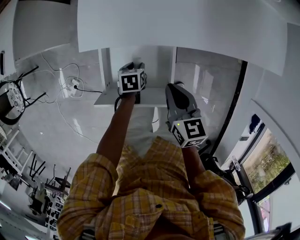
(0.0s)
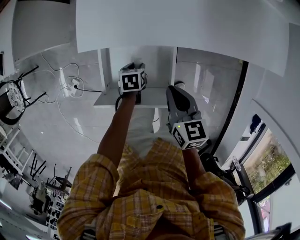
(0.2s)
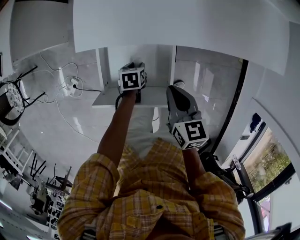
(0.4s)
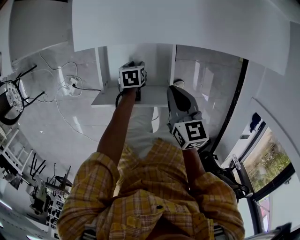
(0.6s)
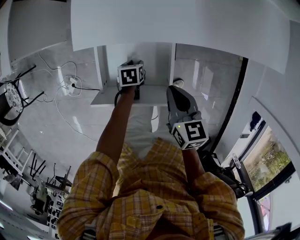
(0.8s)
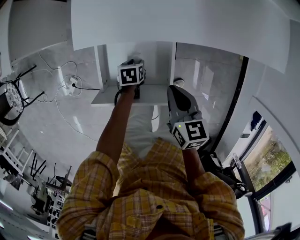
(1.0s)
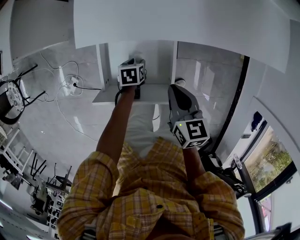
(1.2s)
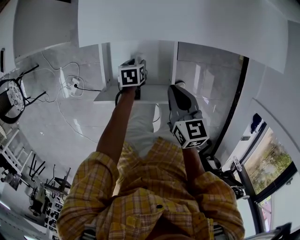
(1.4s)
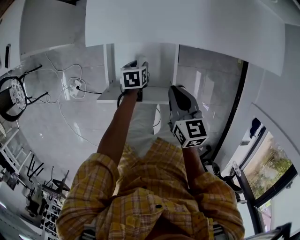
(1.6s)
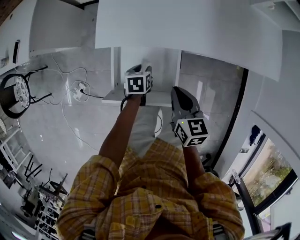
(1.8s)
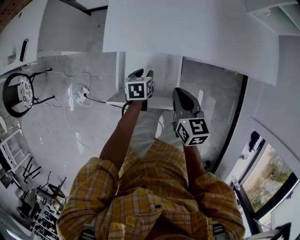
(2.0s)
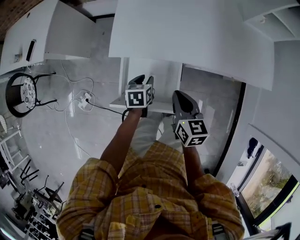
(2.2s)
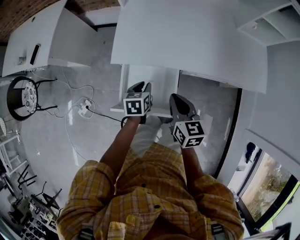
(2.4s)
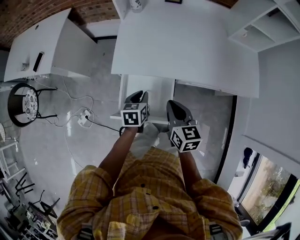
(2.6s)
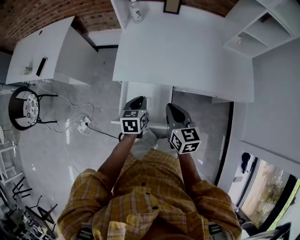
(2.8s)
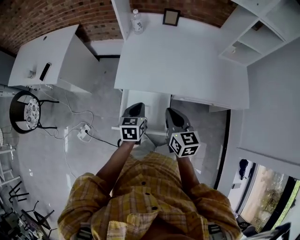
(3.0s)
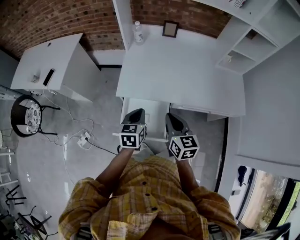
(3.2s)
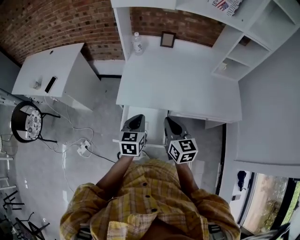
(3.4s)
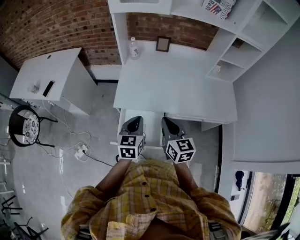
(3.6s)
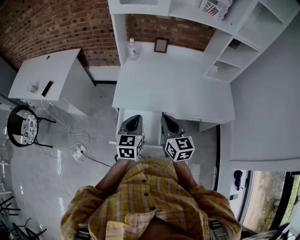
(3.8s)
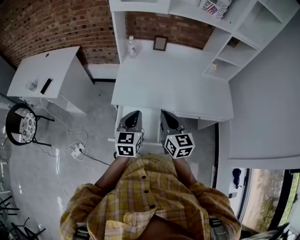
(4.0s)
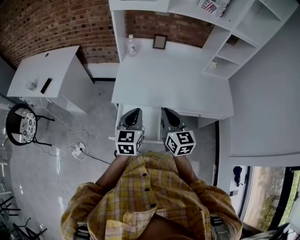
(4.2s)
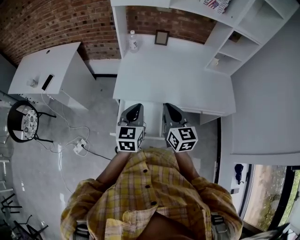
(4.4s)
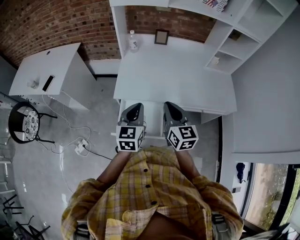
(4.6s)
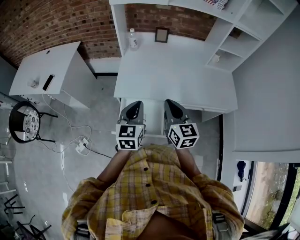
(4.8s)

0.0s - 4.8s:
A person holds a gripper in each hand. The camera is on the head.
0.0s - 1.6s: There are only small adjustments of the grippers.
1.6s - 3.2s: The right gripper heads upward, covering some 20 cm; the left gripper travels upward by some 35 cm, points its fingers roughly 30 degrees further upward, and closes up.
3.2s - 4.8s: Both grippers travel together upward, some 10 cm. The left gripper turns by some 20 degrees.

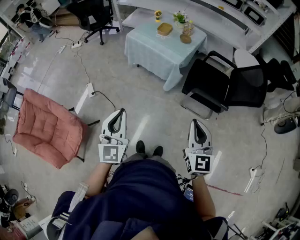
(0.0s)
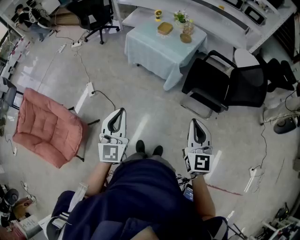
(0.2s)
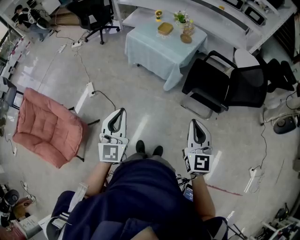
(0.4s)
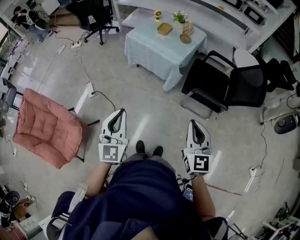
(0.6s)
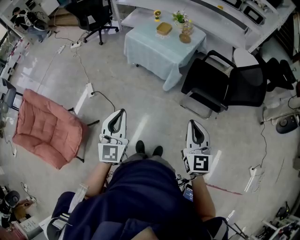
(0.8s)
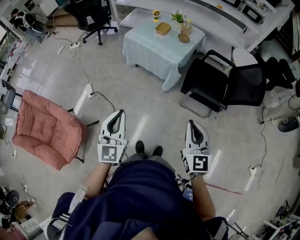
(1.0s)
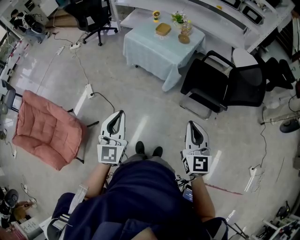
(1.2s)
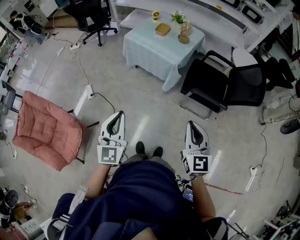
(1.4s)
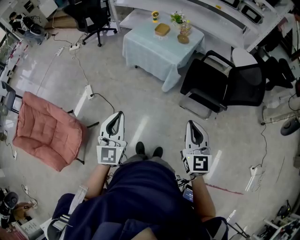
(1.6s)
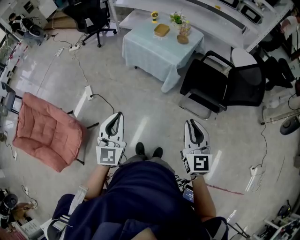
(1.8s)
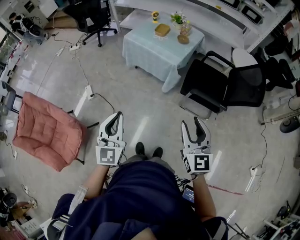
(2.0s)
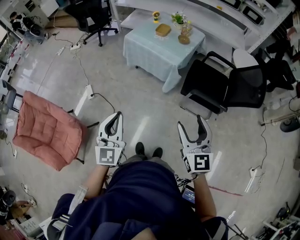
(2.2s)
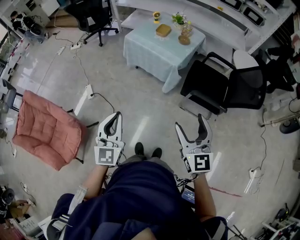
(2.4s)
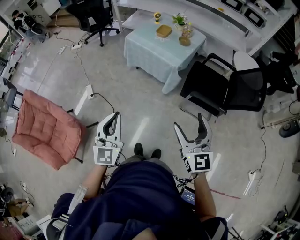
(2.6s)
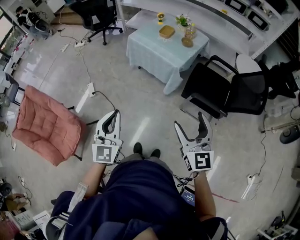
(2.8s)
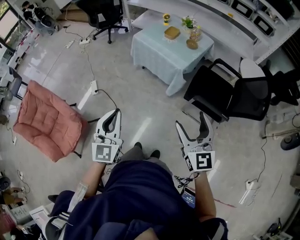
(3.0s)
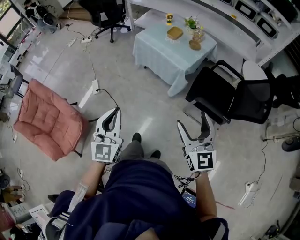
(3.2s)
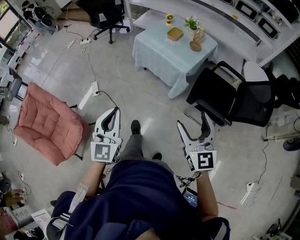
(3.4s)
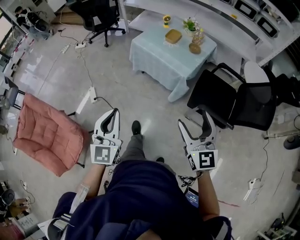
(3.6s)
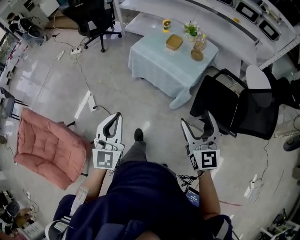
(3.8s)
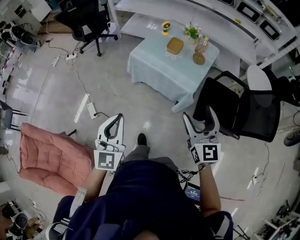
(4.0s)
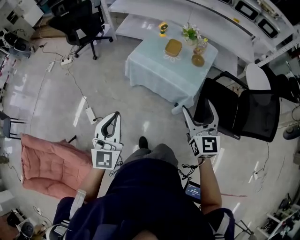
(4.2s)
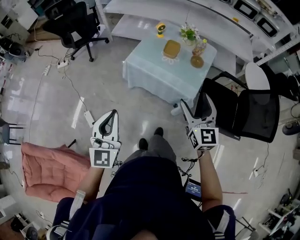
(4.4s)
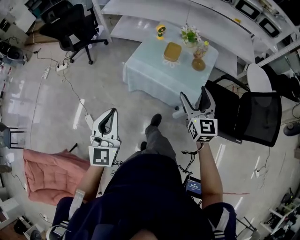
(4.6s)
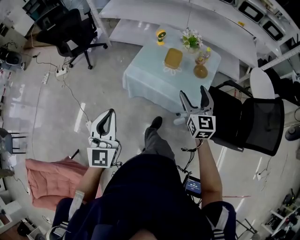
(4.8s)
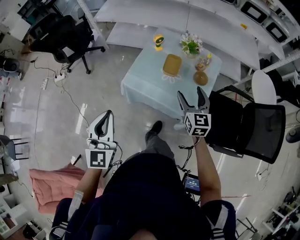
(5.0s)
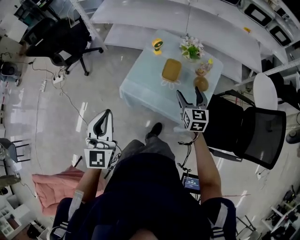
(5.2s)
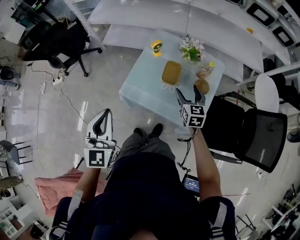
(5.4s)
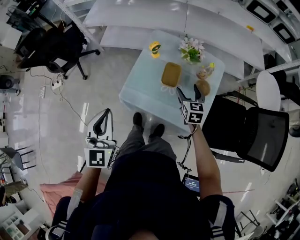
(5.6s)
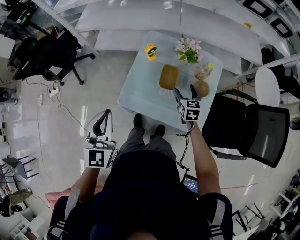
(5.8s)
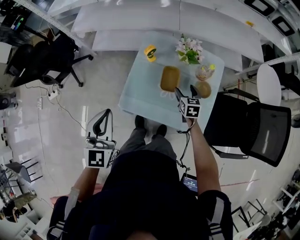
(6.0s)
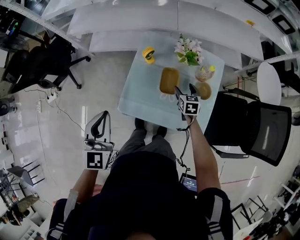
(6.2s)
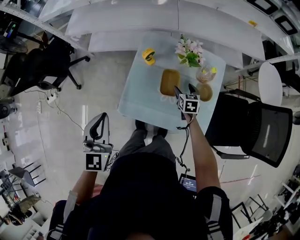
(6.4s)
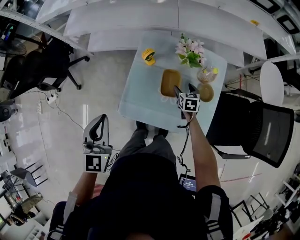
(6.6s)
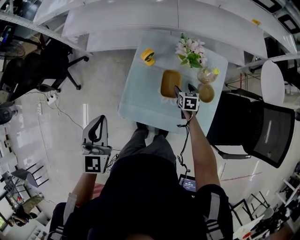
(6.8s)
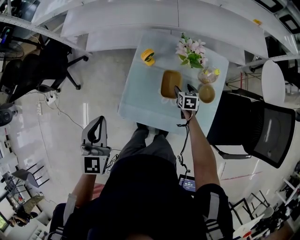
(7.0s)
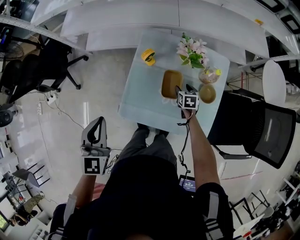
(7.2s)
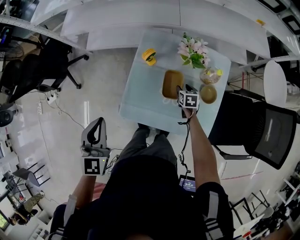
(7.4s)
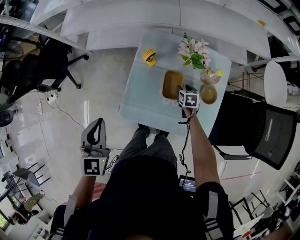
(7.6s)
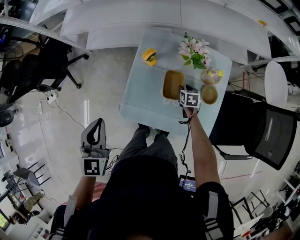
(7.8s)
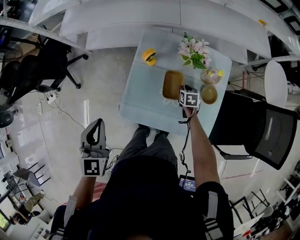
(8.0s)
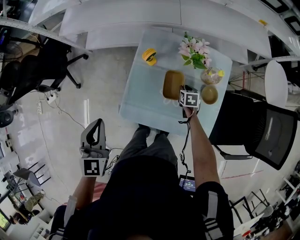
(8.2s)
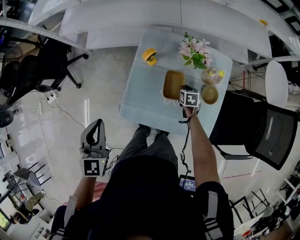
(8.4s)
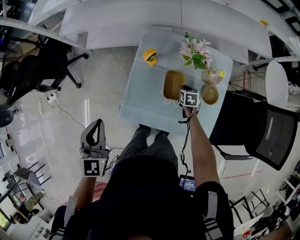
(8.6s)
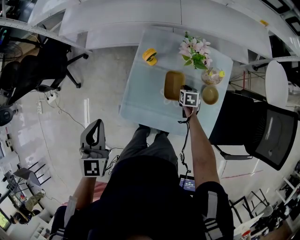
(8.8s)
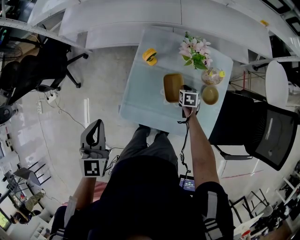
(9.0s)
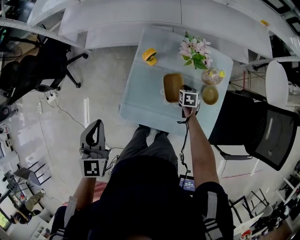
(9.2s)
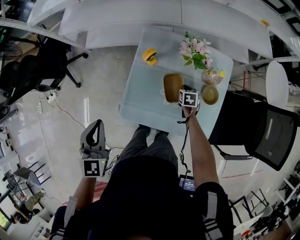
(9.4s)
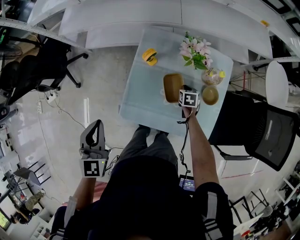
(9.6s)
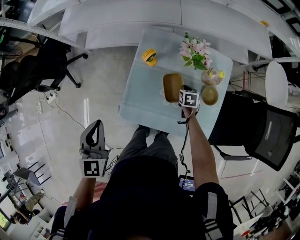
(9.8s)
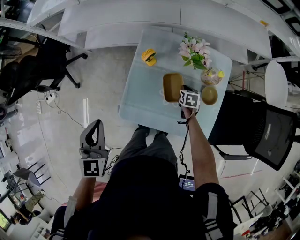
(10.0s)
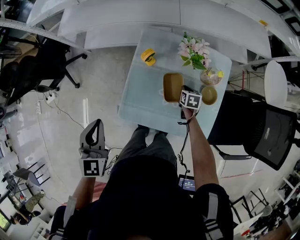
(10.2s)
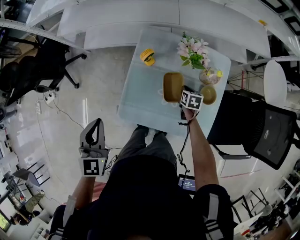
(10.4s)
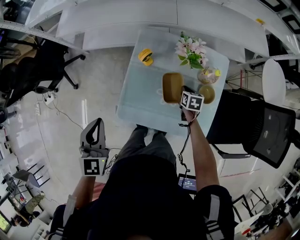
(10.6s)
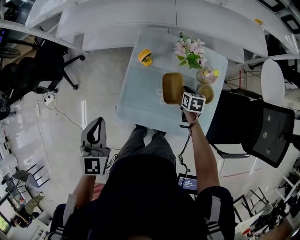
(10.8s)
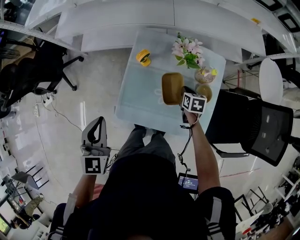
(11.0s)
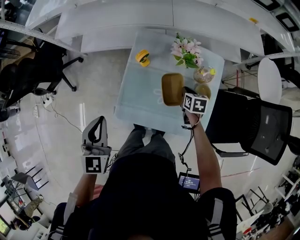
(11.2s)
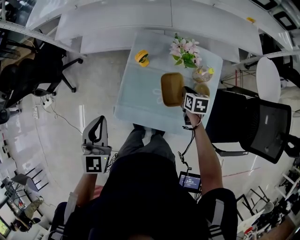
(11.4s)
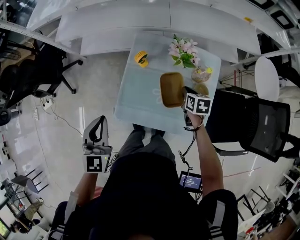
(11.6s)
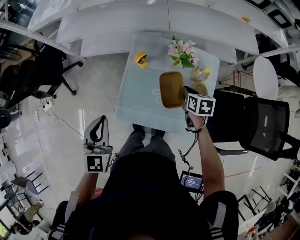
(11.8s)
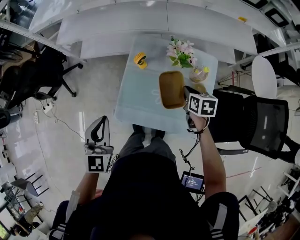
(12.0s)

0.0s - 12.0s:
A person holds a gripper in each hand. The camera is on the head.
0.0s - 1.6s: The grippers make only small movements.
1.6s - 3.0s: The right gripper opens up.
3.0s - 4.4s: Both grippers are carried forward, roughly 40 cm.
4.4s - 6.0s: The pair of grippers is taken forward, roughly 40 cm. The right gripper is displaced downward by roughly 30 cm, and angles its fingers downward, by about 30 degrees.
6.0s - 7.6s: The left gripper heads forward and downward, covering about 10 cm; the right gripper is displaced downward and forward by about 15 cm, and closes up.
7.6s - 9.0s: The right gripper closes up.
9.0s - 10.4s: The grippers make only small movements.
10.4s - 12.0s: The right gripper heads upward, covering roughly 20 cm.

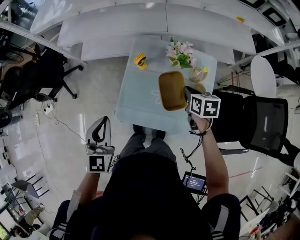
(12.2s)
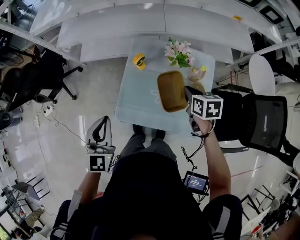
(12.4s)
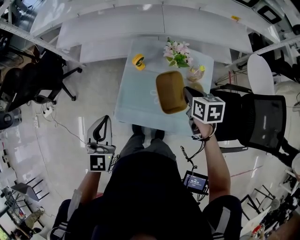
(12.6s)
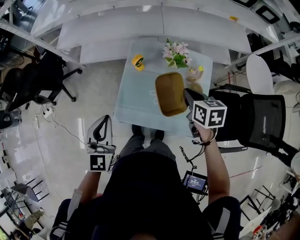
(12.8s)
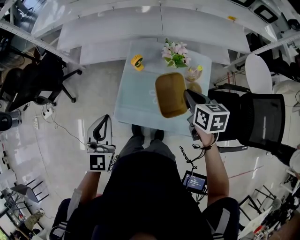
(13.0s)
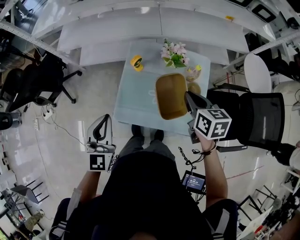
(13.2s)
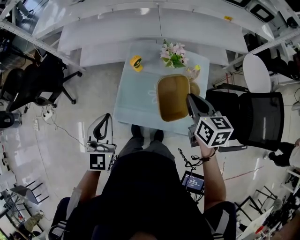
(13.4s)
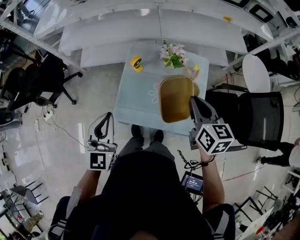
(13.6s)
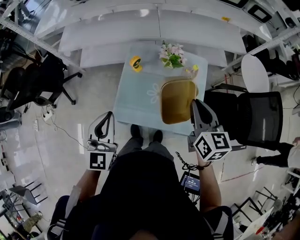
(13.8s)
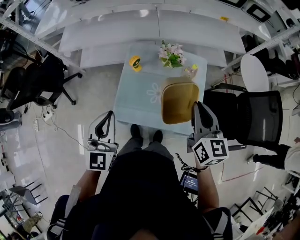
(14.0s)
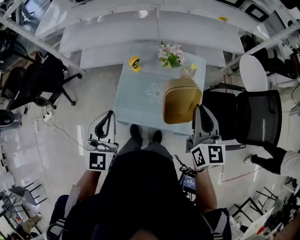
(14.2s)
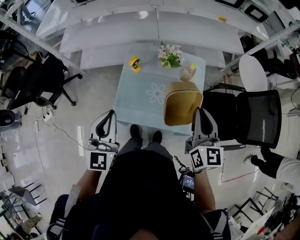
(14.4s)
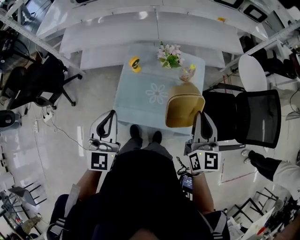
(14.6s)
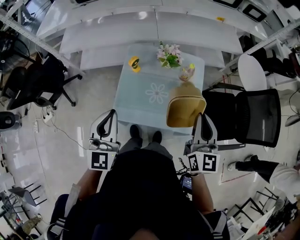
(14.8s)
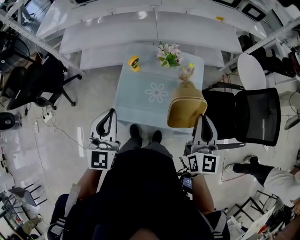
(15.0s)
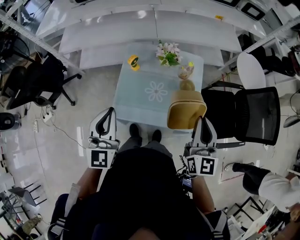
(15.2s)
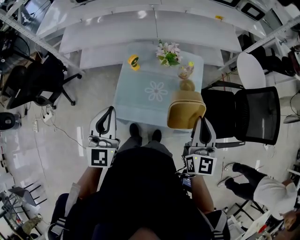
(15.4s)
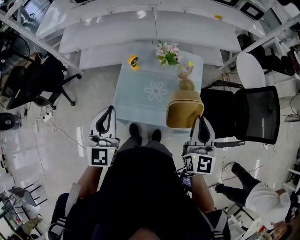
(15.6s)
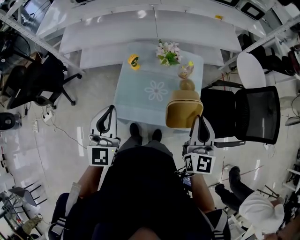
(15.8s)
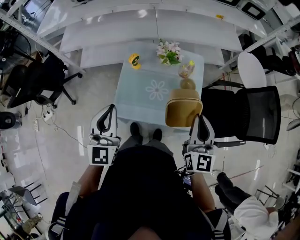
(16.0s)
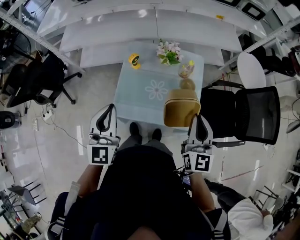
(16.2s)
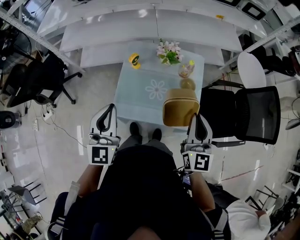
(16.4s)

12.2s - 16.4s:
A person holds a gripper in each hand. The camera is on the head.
12.2s - 13.6s: The left gripper shifts by roughly 5 cm. The right gripper moves upward and backward, about 20 cm, and changes its angle by about 30 degrees.
13.6s - 15.0s: The left gripper ends up roughly 5 cm from where it was. Meanwhile the right gripper is displaced backward by approximately 10 cm, and turns by some 30 degrees.
15.0s - 16.4s: The grippers move only a little.

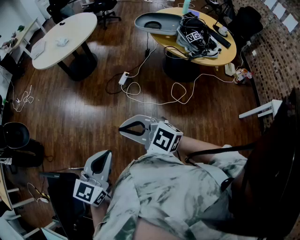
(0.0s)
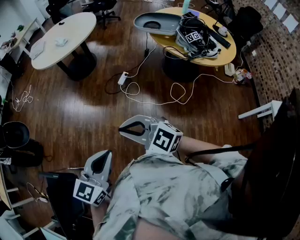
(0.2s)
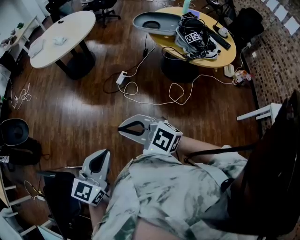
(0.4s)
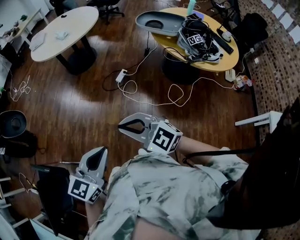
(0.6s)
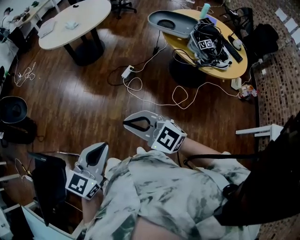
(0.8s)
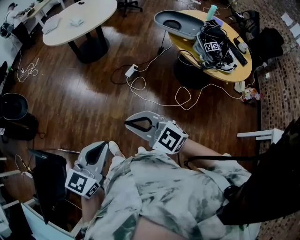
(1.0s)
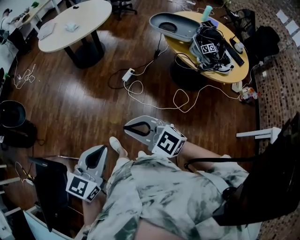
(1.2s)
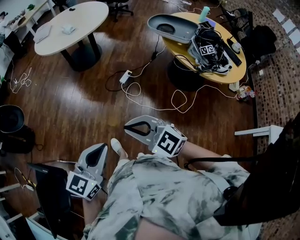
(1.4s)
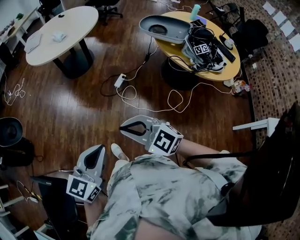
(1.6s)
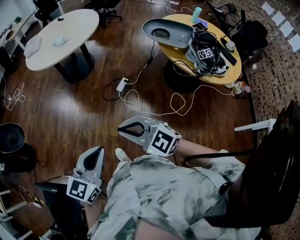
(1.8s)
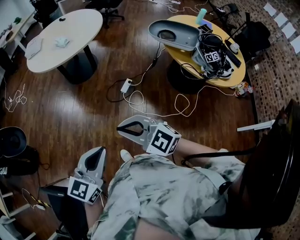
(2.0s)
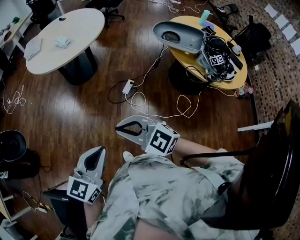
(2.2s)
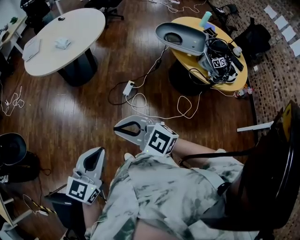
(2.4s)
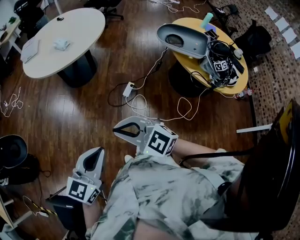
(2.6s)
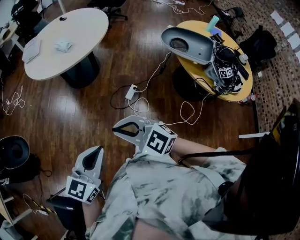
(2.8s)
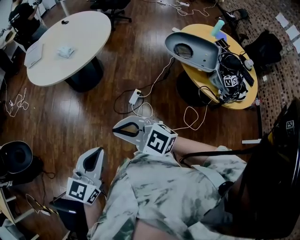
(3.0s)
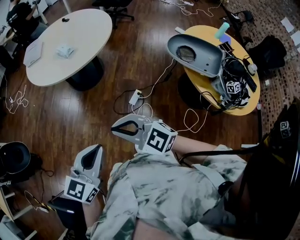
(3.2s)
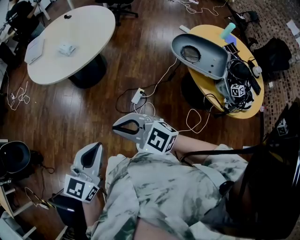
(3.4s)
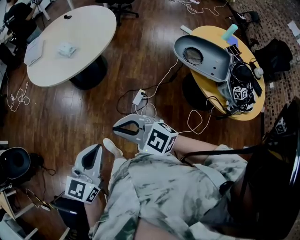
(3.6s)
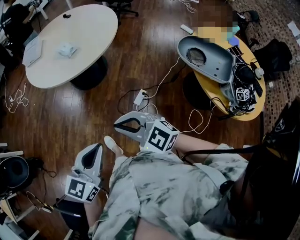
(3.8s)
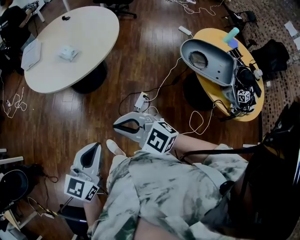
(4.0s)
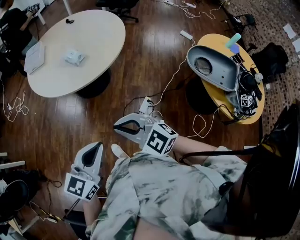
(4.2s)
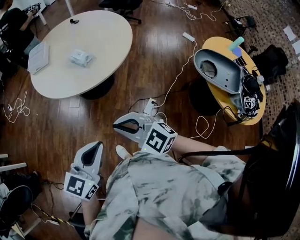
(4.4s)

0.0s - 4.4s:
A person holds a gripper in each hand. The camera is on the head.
0.0s - 1.4s: The left gripper shifts approximately 10 cm forward, while the right gripper travels forward and to the right by roughly 10 cm.
1.4s - 3.0s: The grippers both shift forward by some 30 cm.
3.0s - 4.4s: Both grippers move forward and to the left, about 25 cm.
